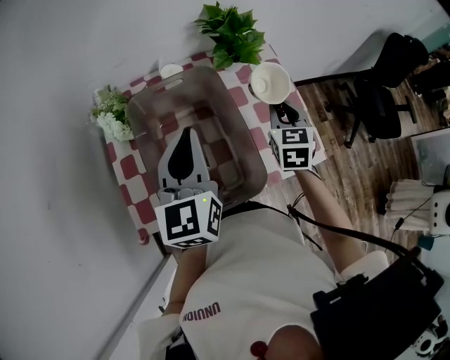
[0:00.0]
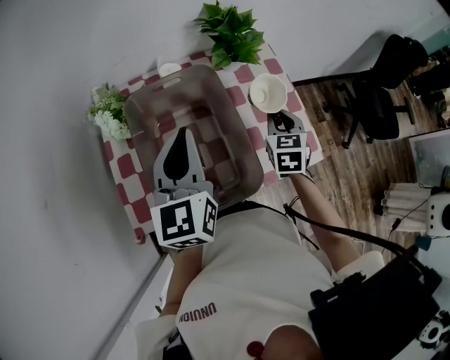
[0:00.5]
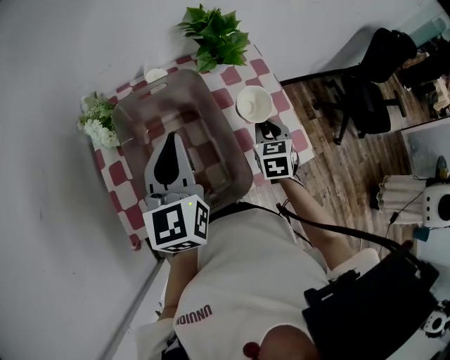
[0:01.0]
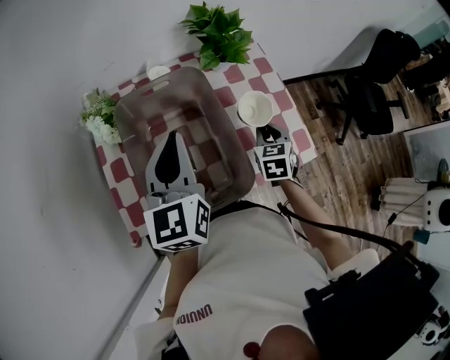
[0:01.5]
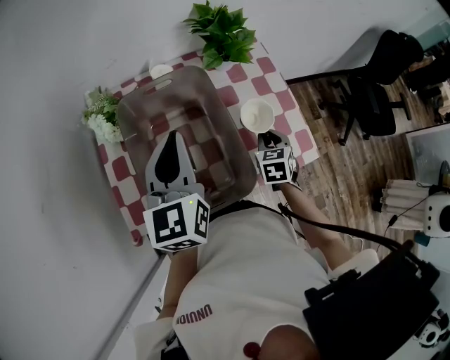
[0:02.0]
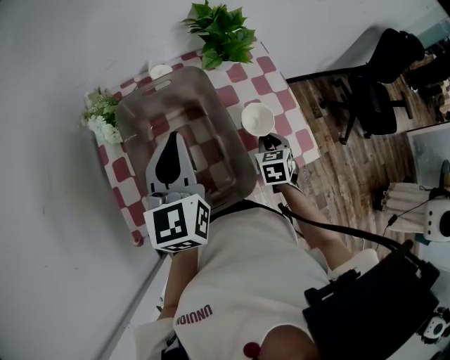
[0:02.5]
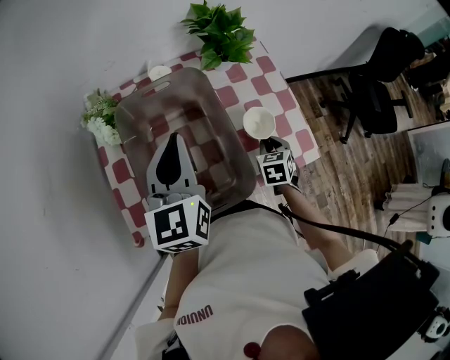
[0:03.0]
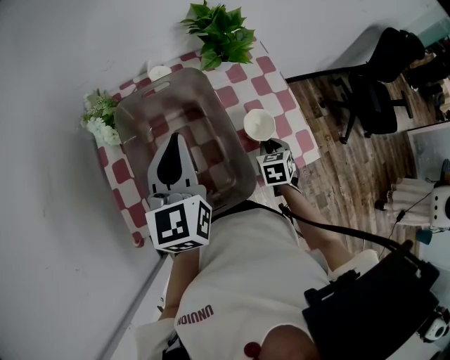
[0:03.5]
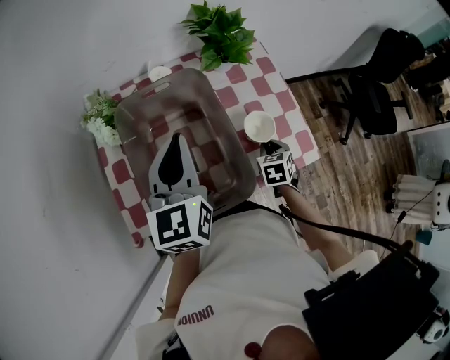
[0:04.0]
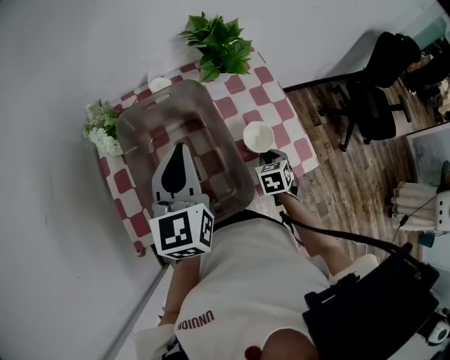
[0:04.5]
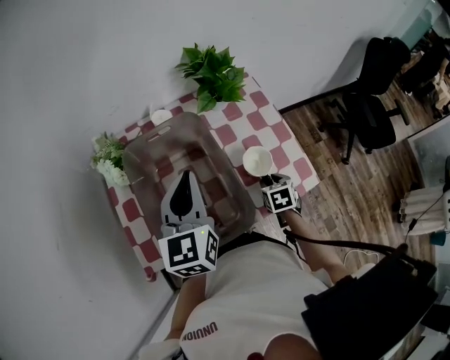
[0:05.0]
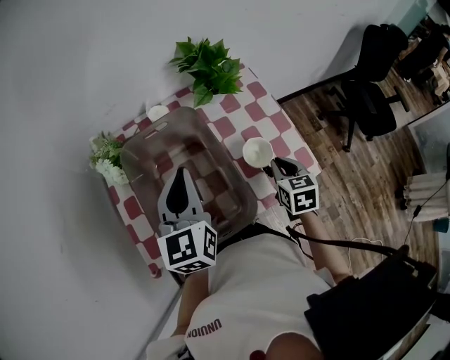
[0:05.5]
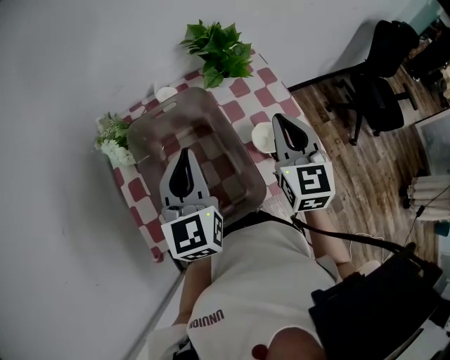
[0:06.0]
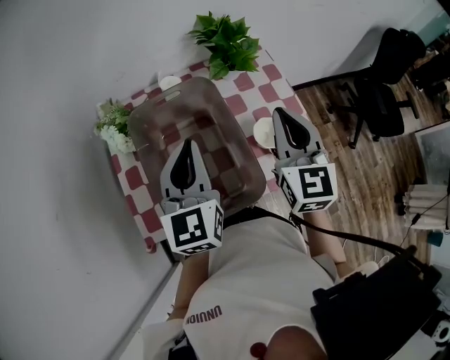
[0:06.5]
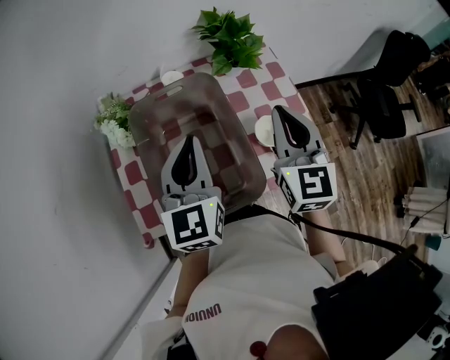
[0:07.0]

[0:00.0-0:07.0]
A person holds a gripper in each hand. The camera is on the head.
0:00.0 to 0:02.0: The right gripper heads downward and backward, covering about 15 cm.
0:02.0 to 0:03.5: The right gripper changes place by some 5 cm.
0:03.5 to 0:05.0: The right gripper opens its fingers.
0:05.0 to 0:07.0: The right gripper shifts about 30 cm upward, tips its fingers upward by approximately 50 degrees, and closes up.

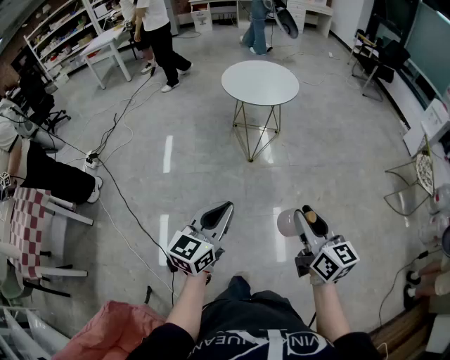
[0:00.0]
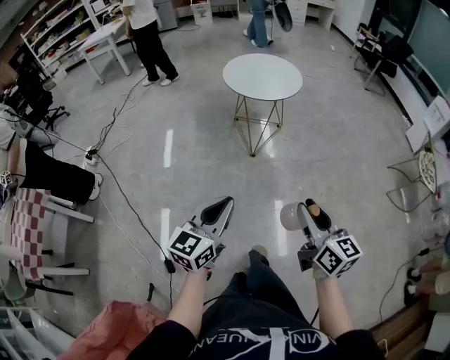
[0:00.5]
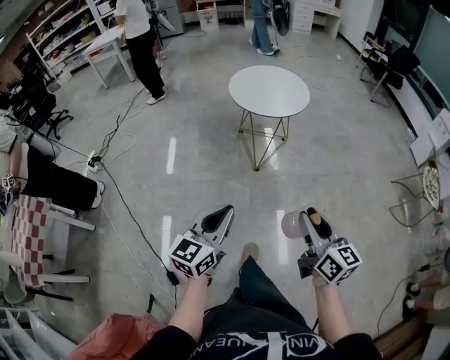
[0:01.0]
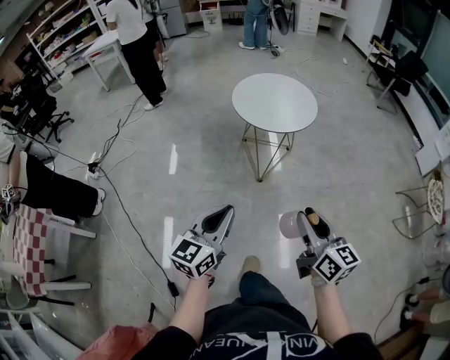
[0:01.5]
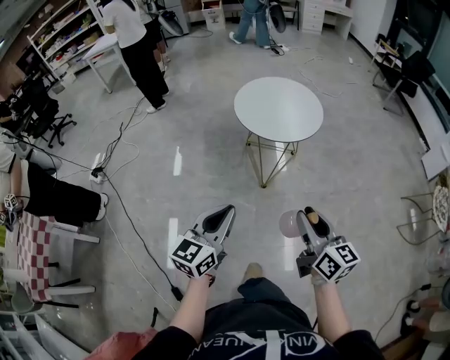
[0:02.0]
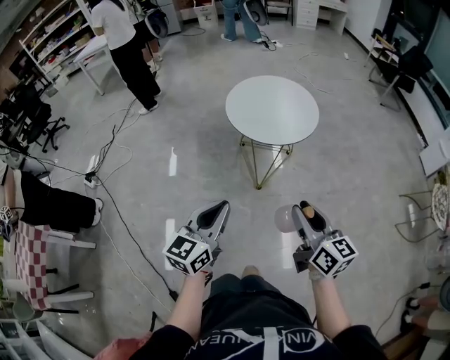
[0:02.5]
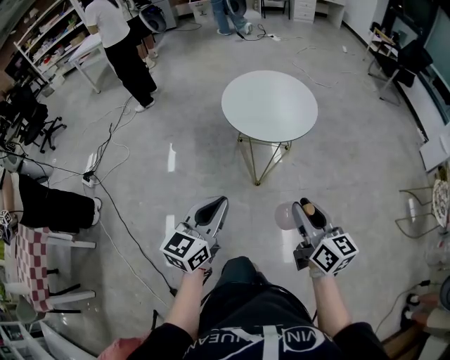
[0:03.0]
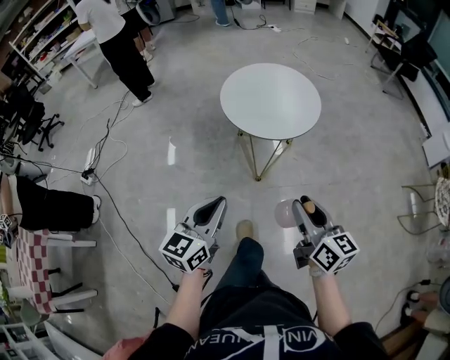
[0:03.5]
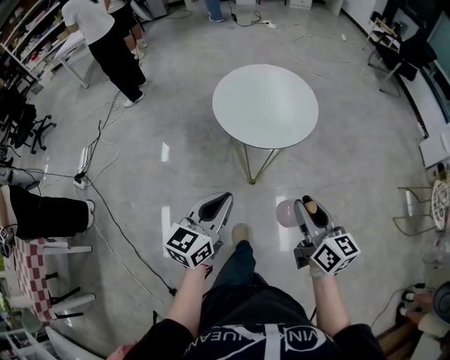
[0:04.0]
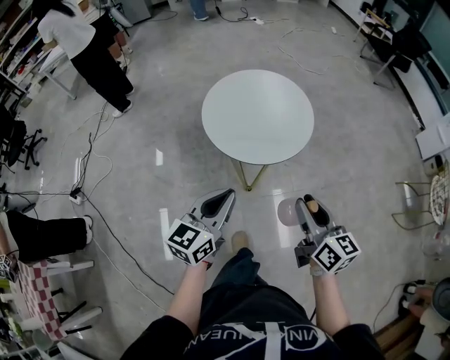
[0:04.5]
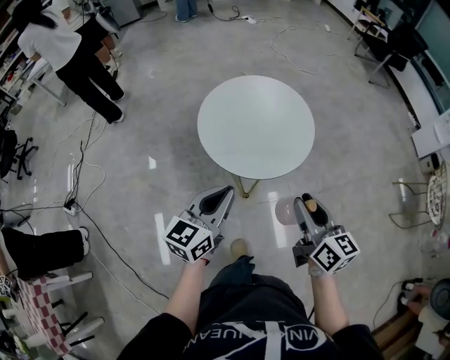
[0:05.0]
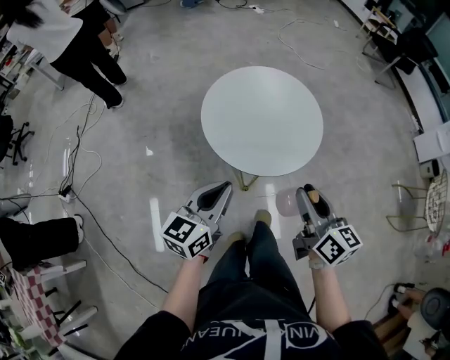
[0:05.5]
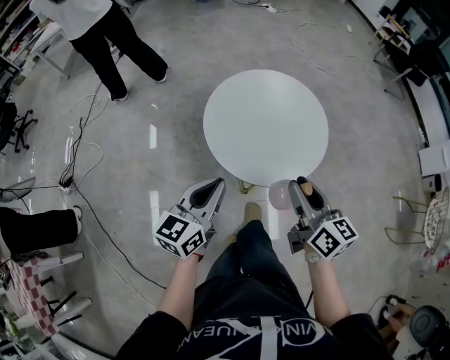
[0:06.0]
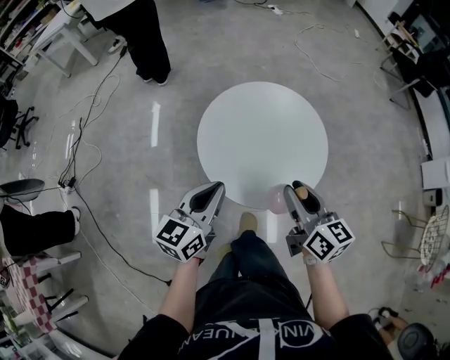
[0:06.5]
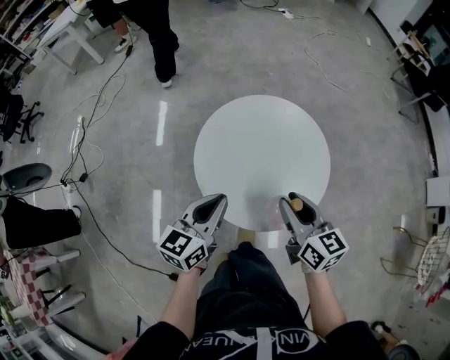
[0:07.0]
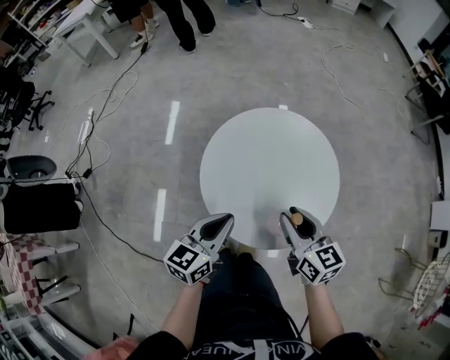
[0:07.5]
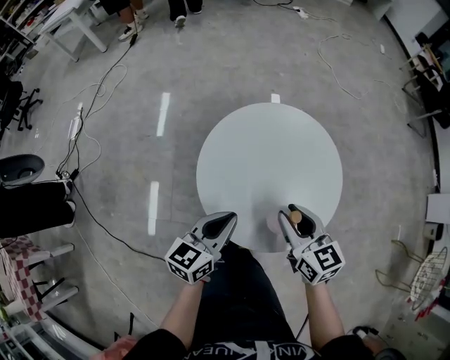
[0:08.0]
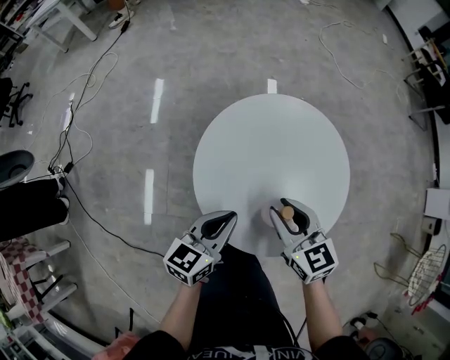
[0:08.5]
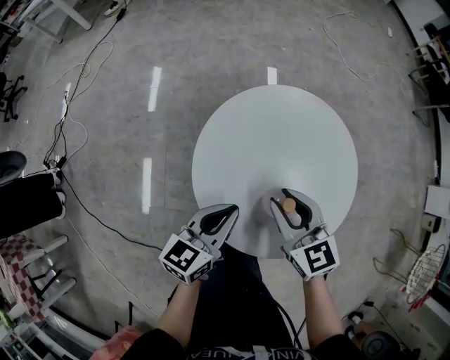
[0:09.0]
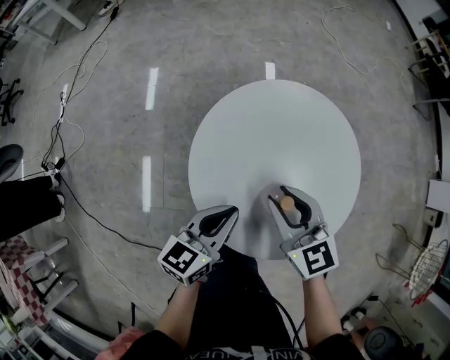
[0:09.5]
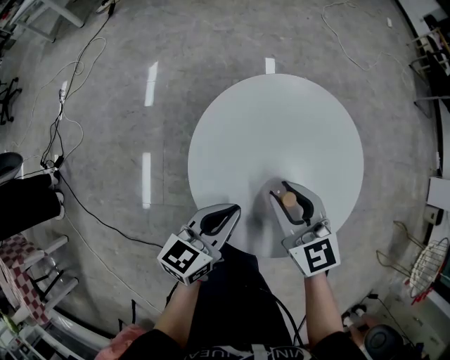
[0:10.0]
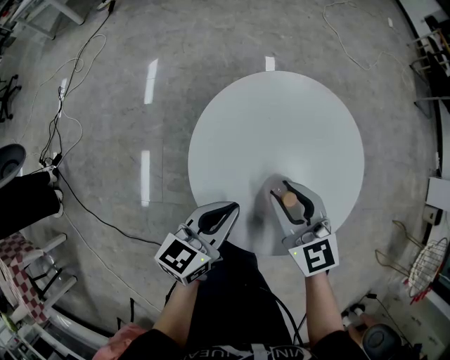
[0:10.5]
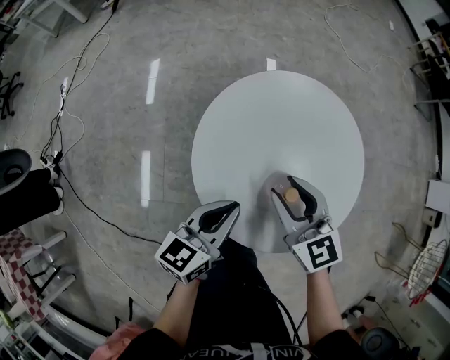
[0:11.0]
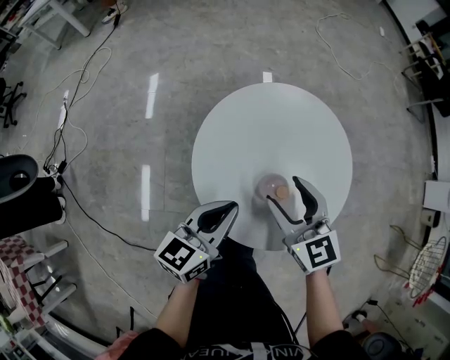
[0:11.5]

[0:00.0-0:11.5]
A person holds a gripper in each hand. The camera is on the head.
0:00.0 to 0:02.0: The grippers both shift forward by approximately 30 cm.
0:02.0 to 0:04.0: The two grippers go roughly 15 cm forward.
0:04.0 to 0:06.0: Both grippers move forward, some 25 cm.
0:06.0 to 0:07.5: The left gripper shifts approximately 15 cm forward, downward and to the right. The right gripper moves forward and downward, approximately 15 cm, and swivels some 20 degrees.
0:07.5 to 0:09.5: The right gripper travels to the left, forward and downward by some 15 cm; the left gripper travels downward and forward by approximately 10 cm.
0:09.5 to 0:11.5: The left gripper shifts about 5 cm upward. The right gripper opens up.

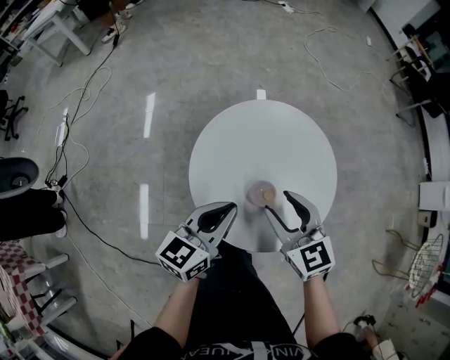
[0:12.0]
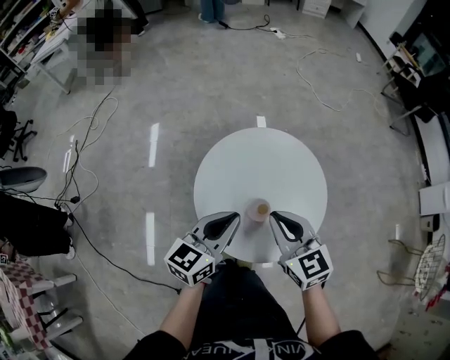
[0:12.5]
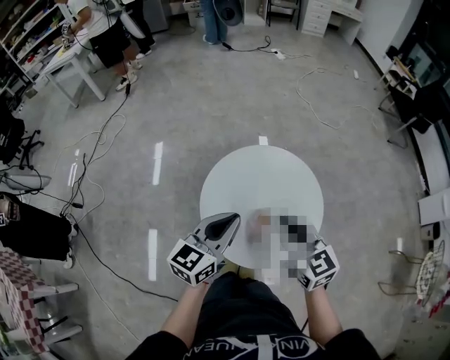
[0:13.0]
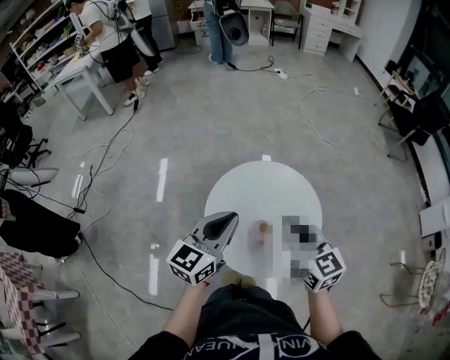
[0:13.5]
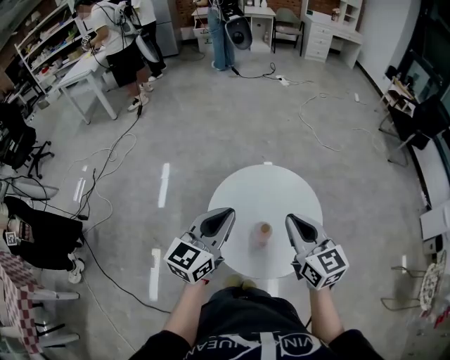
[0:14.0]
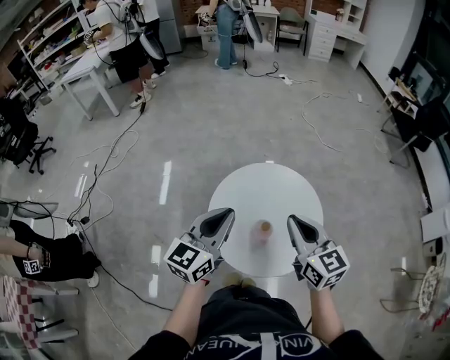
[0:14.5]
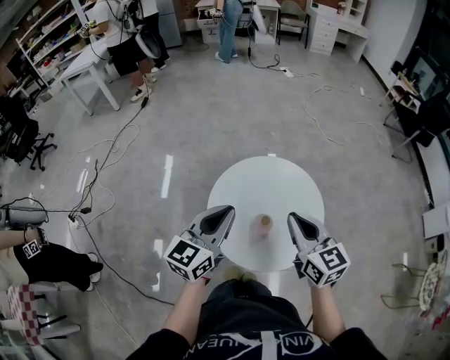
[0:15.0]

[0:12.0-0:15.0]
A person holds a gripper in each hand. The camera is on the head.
0:12.0 to 0:13.5: The grippers both shift upward by roughly 15 cm. The right gripper closes up.
0:13.5 to 0:15.0: There are only small adjustments of the grippers.

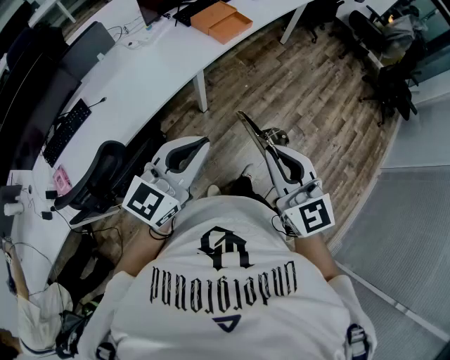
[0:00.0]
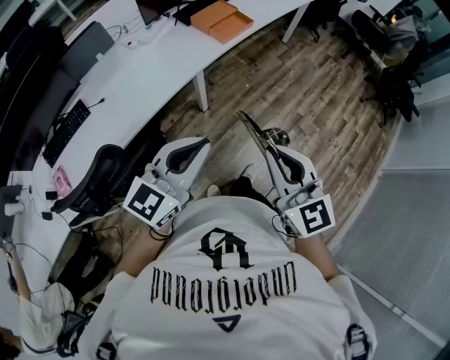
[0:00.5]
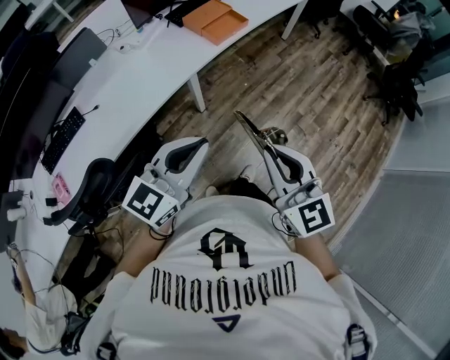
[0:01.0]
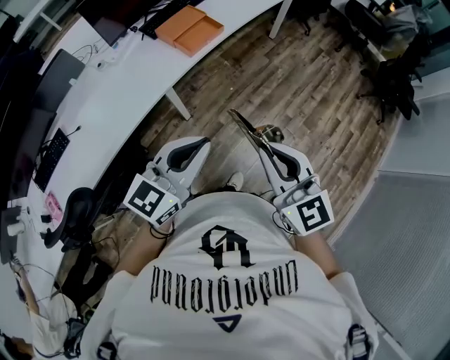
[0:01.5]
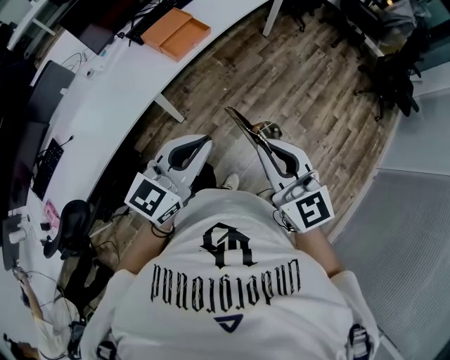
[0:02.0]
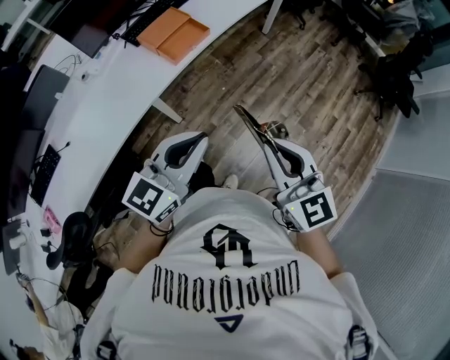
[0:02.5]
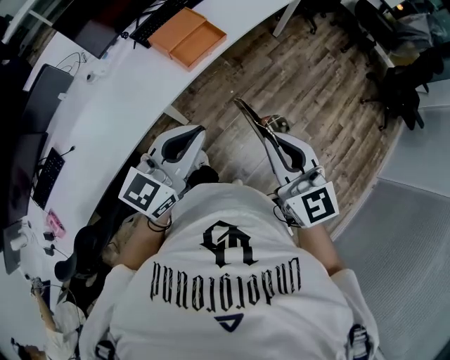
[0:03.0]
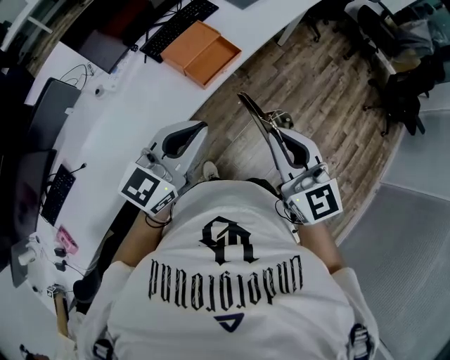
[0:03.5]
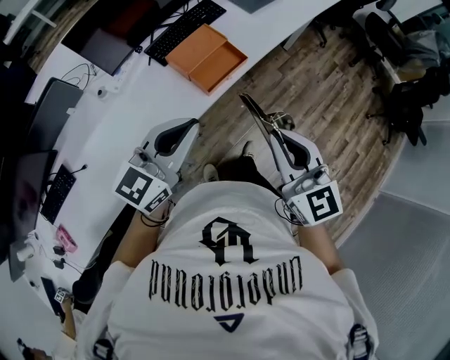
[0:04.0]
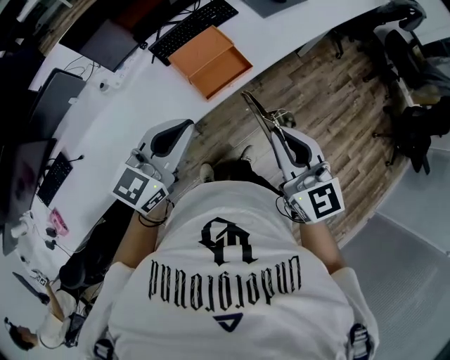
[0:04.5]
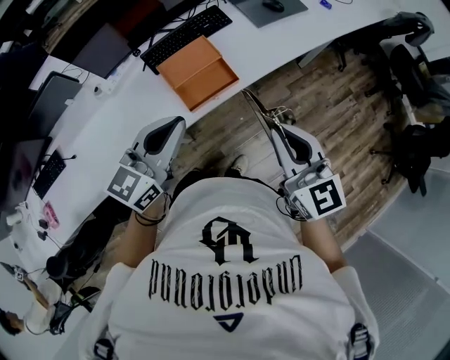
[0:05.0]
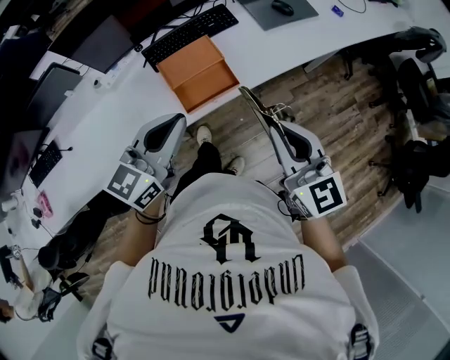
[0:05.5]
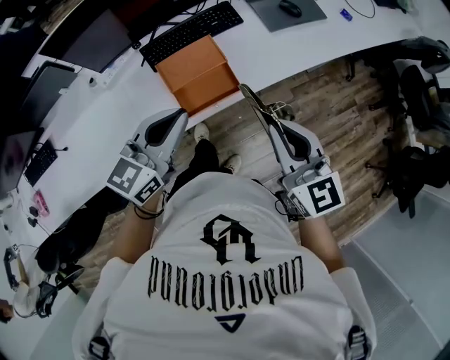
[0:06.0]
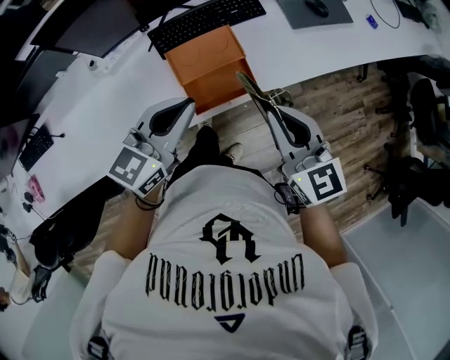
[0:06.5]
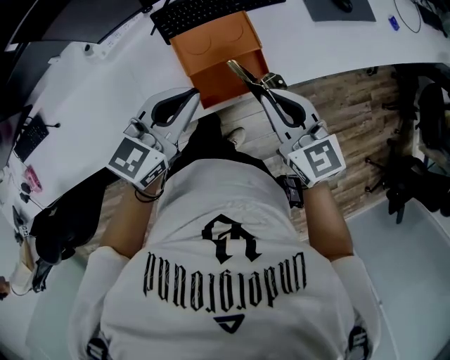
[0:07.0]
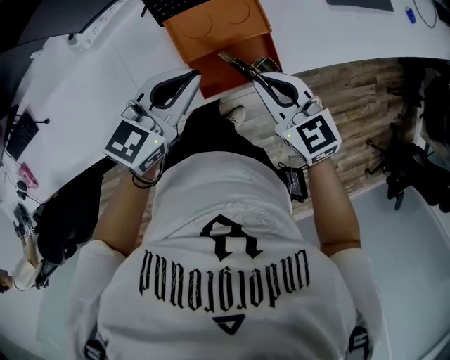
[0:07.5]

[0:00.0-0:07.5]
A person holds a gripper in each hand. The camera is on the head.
0:00.0 to 0:02.0: The grippers both shift forward and to the right by about 30 cm.
0:02.0 to 0:04.0: The grippers both shift forward and to the left by approximately 30 cm.
0:04.0 to 0:05.5: Both grippers travel together forward and to the right, approximately 20 cm. The left gripper changes its angle by approximately 20 degrees.
0:05.5 to 0:07.5: The left gripper heads downward and forward, covering approximately 25 cm. Meanwhile the right gripper travels downward, forward and to the left by some 30 cm, and rotates roughly 30 degrees.
